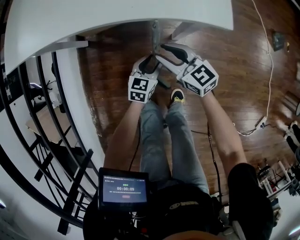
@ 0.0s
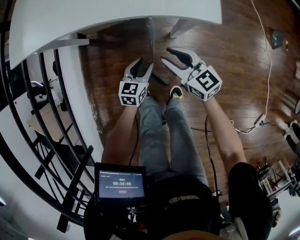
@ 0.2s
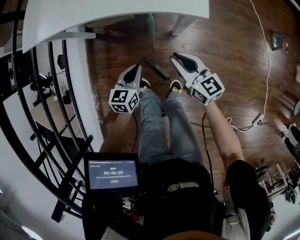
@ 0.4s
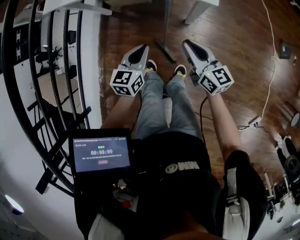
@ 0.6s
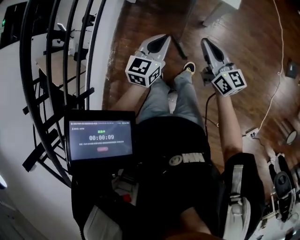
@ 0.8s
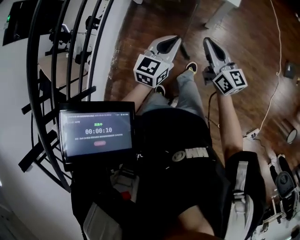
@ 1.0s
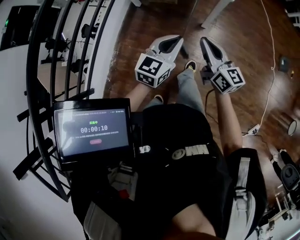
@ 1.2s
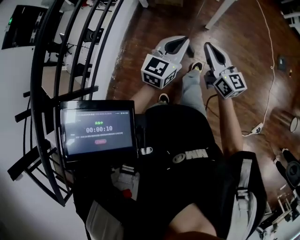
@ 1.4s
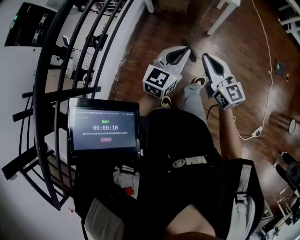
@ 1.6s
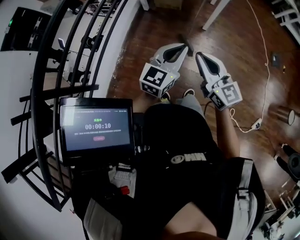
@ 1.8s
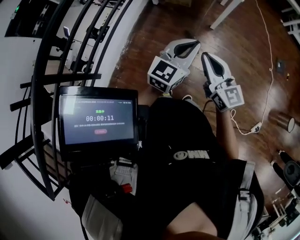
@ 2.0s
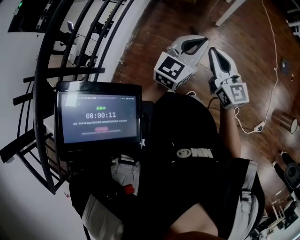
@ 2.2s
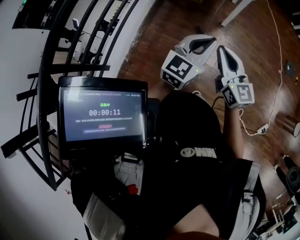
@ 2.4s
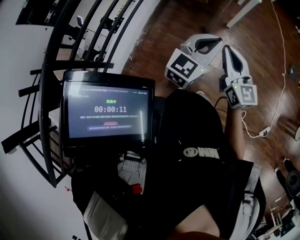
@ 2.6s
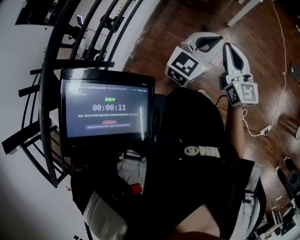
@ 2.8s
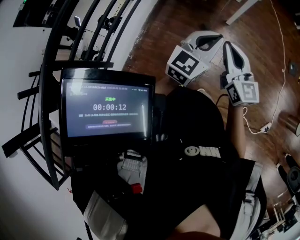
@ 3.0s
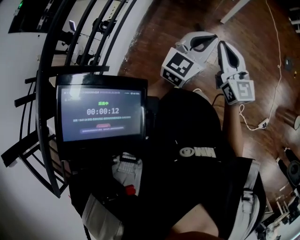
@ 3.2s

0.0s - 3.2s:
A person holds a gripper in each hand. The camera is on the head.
0.0s - 1.6s: The two grippers travel together, backward, approximately 50 cm. The two grippers go roughly 40 cm upward. The left gripper swivels some 30 degrees, and closes its fingers. Meanwhile the right gripper closes.
1.6s - 3.2s: The left gripper shifts by some 5 cm.

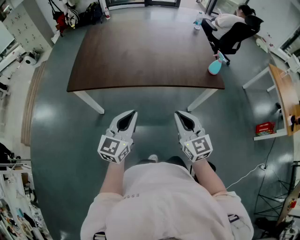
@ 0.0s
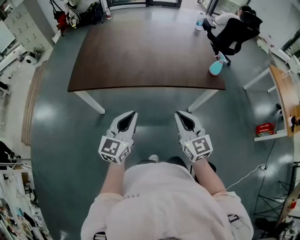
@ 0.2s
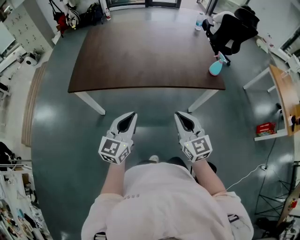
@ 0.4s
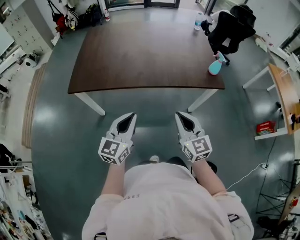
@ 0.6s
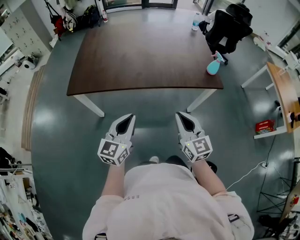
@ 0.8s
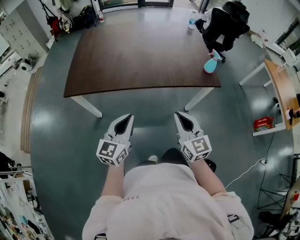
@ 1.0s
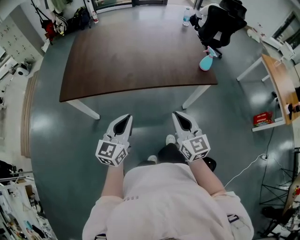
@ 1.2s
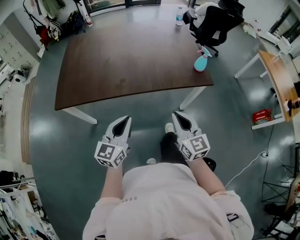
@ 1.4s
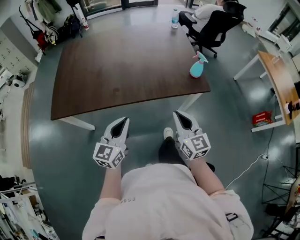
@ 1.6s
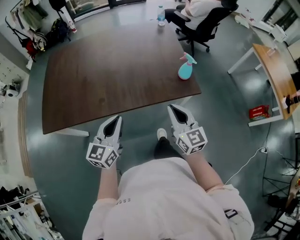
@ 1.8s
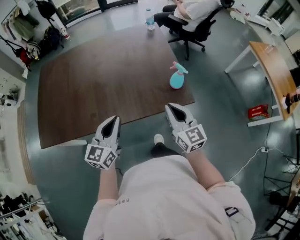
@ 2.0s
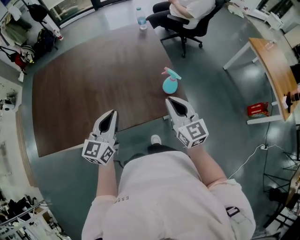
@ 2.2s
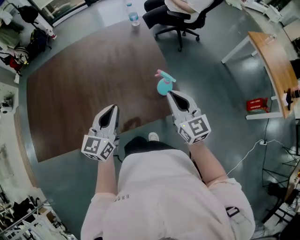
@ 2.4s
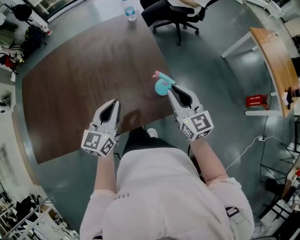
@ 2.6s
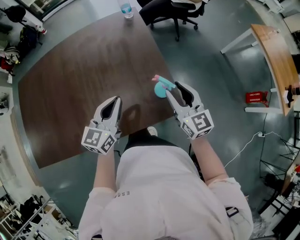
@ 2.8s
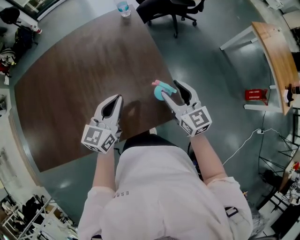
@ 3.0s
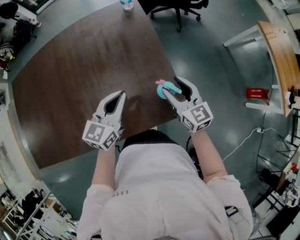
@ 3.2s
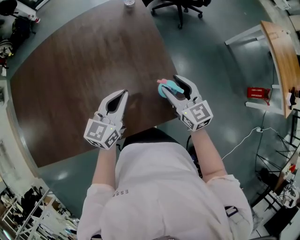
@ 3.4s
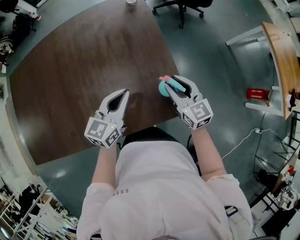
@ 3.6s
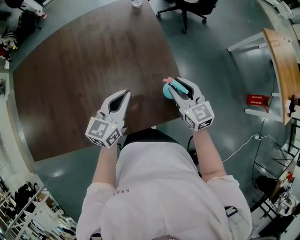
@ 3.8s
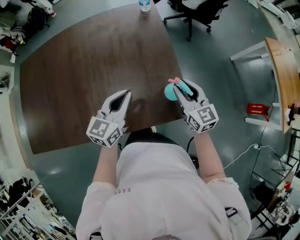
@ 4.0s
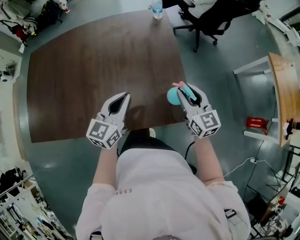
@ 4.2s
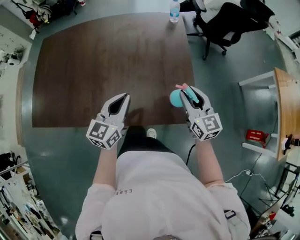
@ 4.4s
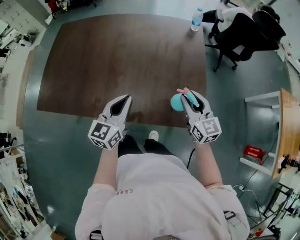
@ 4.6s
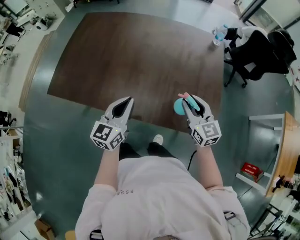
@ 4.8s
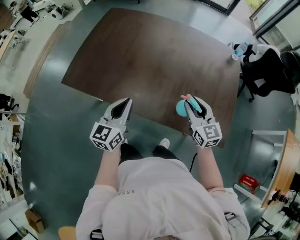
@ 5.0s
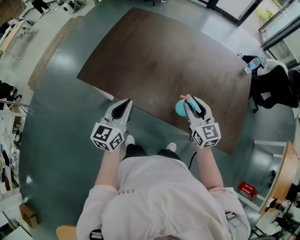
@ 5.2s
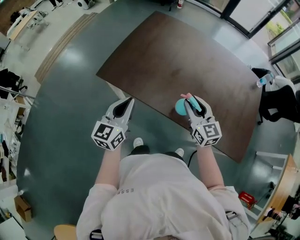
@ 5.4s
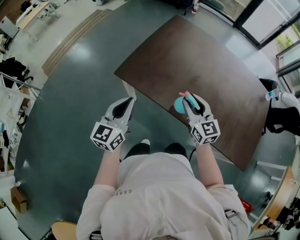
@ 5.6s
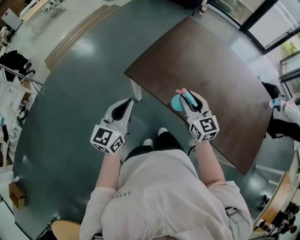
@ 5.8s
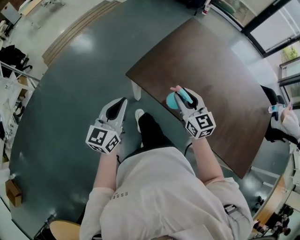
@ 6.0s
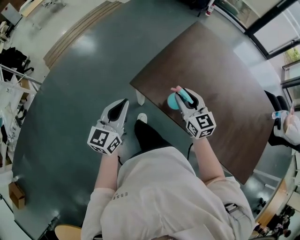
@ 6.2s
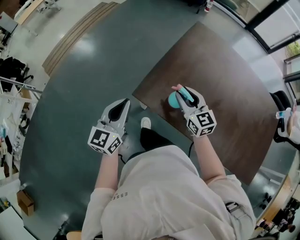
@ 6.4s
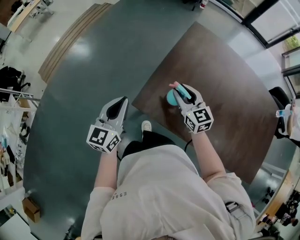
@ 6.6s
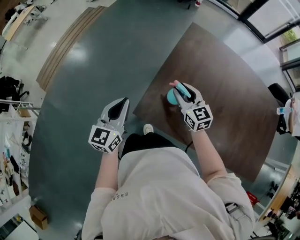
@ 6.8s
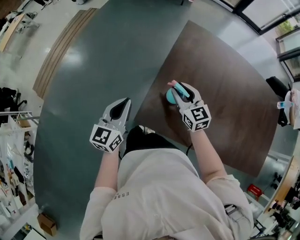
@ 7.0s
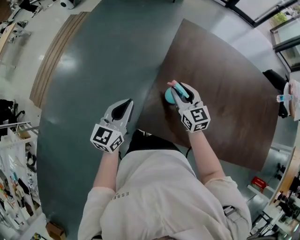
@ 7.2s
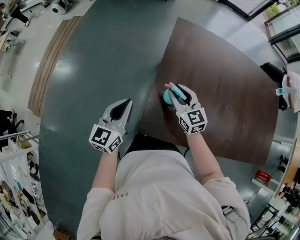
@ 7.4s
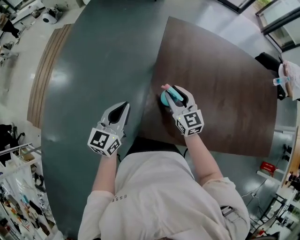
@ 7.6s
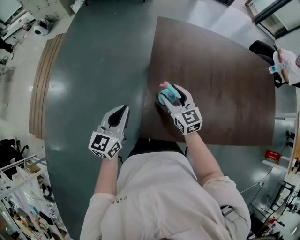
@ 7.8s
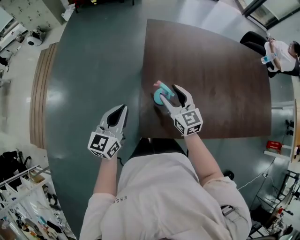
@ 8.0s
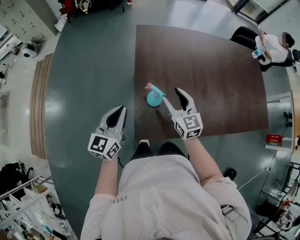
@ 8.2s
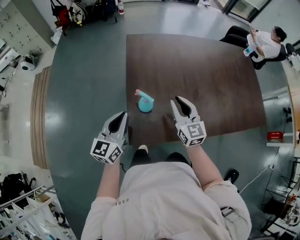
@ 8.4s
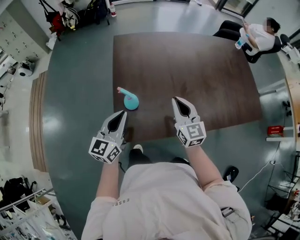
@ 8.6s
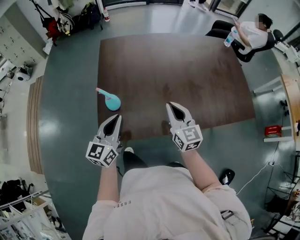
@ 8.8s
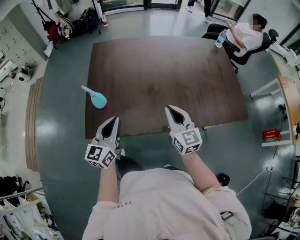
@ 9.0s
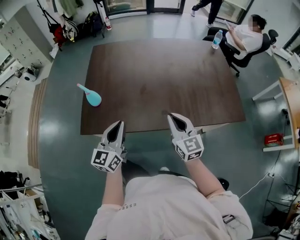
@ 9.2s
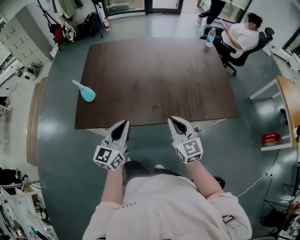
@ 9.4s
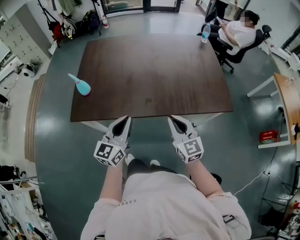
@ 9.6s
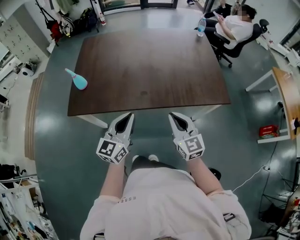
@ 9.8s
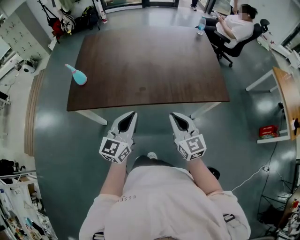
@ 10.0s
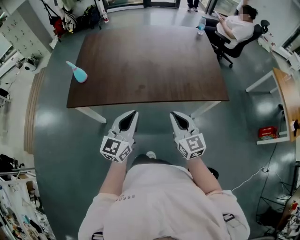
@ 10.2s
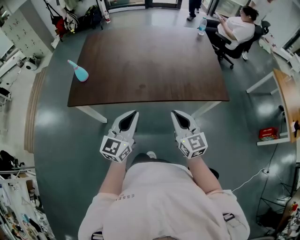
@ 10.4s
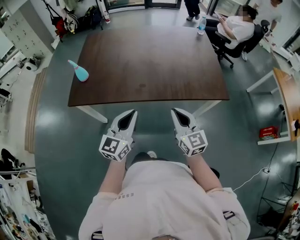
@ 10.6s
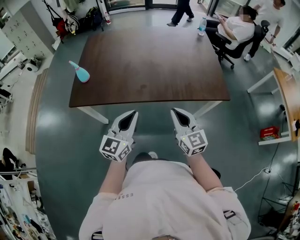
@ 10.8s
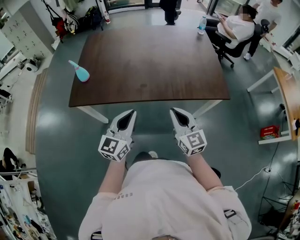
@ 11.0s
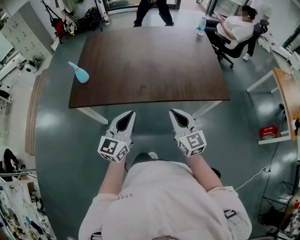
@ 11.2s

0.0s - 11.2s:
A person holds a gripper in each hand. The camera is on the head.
0.0s - 1.6s: The right gripper heads to the right and forward, covering about 15 cm. The left gripper moves forward and to the right, roughly 10 cm.
1.6s - 3.2s: The two grippers go some 40 cm forward and to the right. The right gripper opens.
3.2s - 4.8s: The right gripper changes place by some 20 cm, rotates approximately 30 degrees, and closes. Meanwhile the left gripper changes place by approximately 25 cm, and turns by some 40 degrees.
4.8s - 6.4s: Both grippers are carried roughly 60 cm. The left gripper turns by some 20 degrees. Meanwhile the right gripper swivels some 20 degrees.
6.4s - 8.0s: The right gripper shifts by about 10 cm, turns by some 30 degrees, and opens up. The left gripper shifts by some 20 cm, and changes its angle by about 30 degrees.
8.0s - 9.6s: The pair of grippers is taken to the right and backward, about 50 cm. The right gripper closes its fingers.
9.6s - 11.2s: Both grippers travel together backward, some 5 cm.

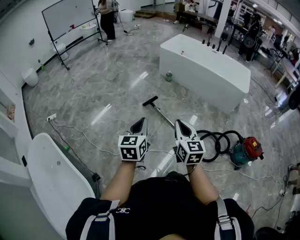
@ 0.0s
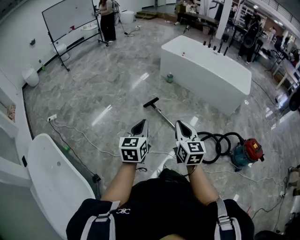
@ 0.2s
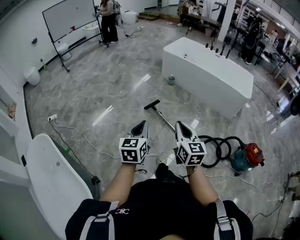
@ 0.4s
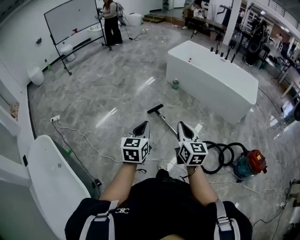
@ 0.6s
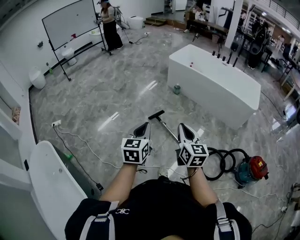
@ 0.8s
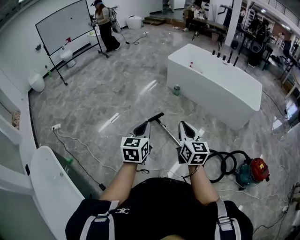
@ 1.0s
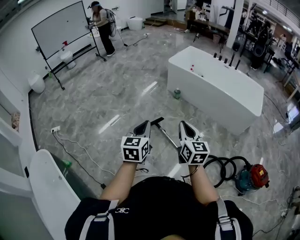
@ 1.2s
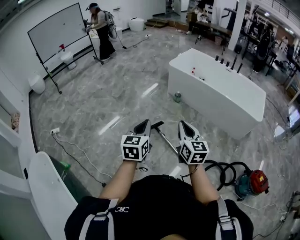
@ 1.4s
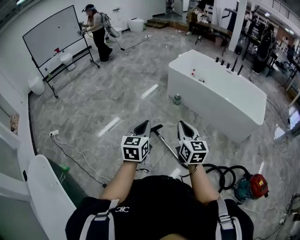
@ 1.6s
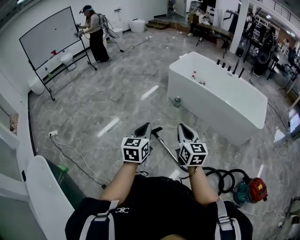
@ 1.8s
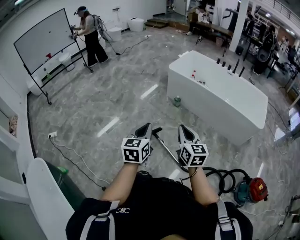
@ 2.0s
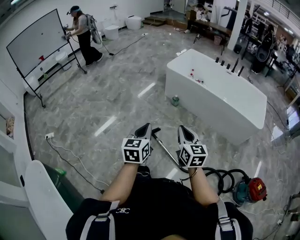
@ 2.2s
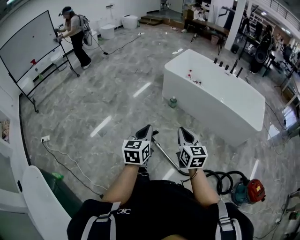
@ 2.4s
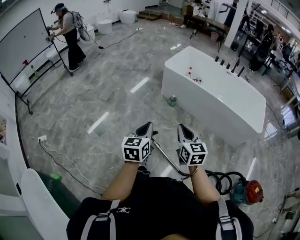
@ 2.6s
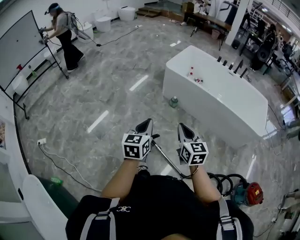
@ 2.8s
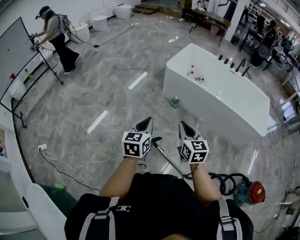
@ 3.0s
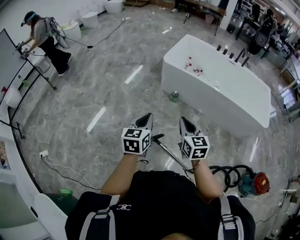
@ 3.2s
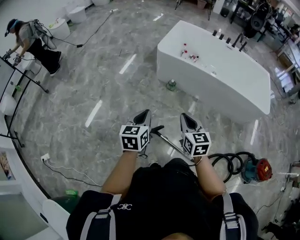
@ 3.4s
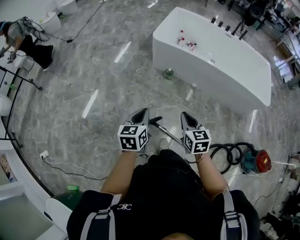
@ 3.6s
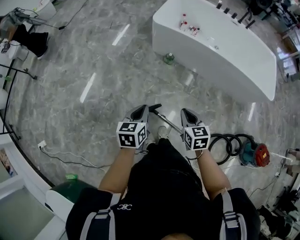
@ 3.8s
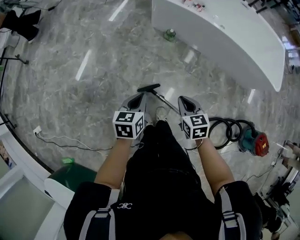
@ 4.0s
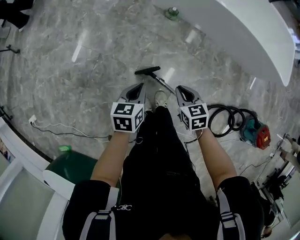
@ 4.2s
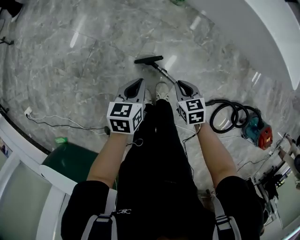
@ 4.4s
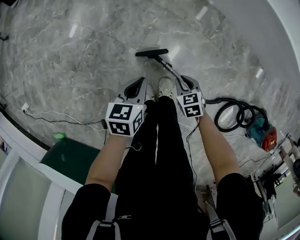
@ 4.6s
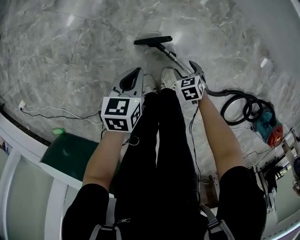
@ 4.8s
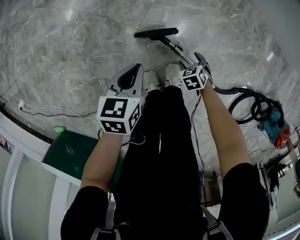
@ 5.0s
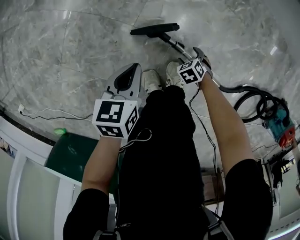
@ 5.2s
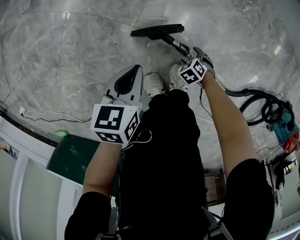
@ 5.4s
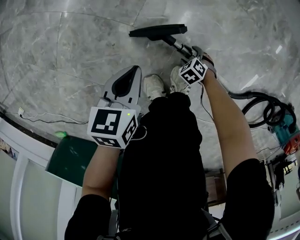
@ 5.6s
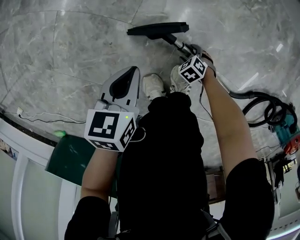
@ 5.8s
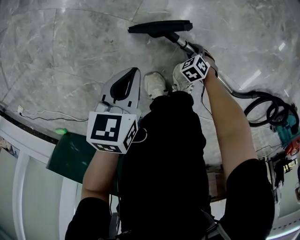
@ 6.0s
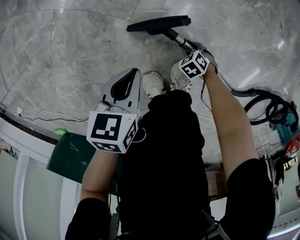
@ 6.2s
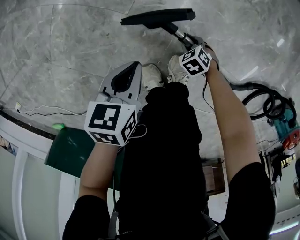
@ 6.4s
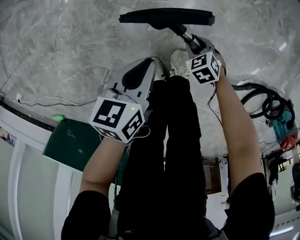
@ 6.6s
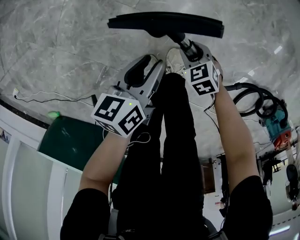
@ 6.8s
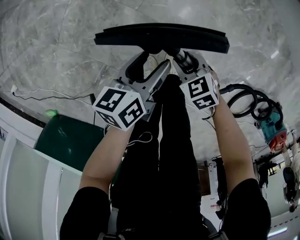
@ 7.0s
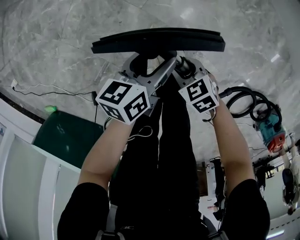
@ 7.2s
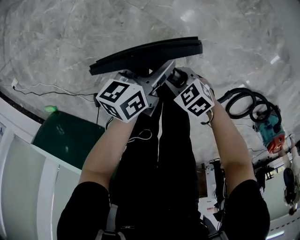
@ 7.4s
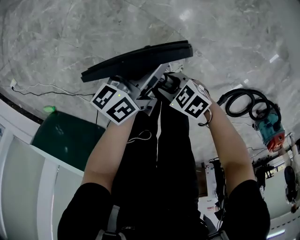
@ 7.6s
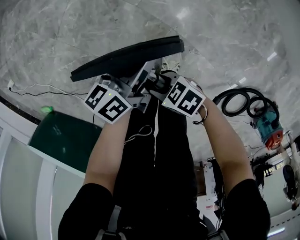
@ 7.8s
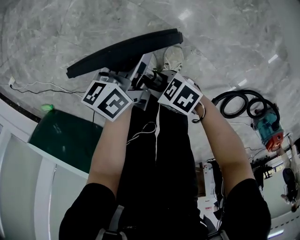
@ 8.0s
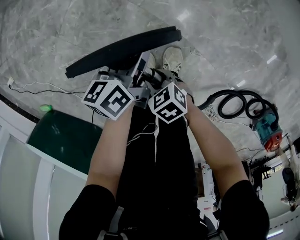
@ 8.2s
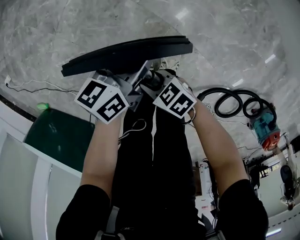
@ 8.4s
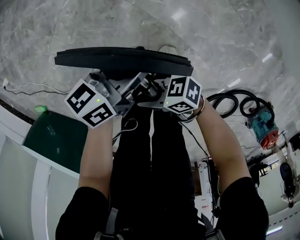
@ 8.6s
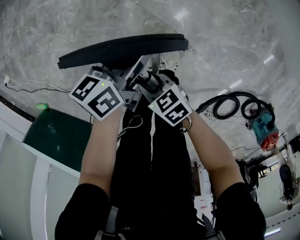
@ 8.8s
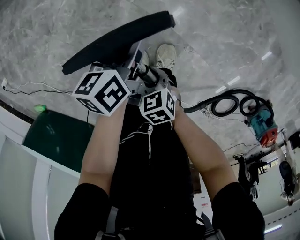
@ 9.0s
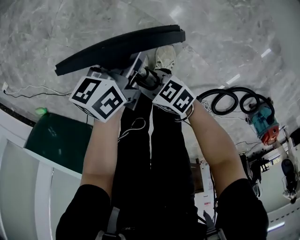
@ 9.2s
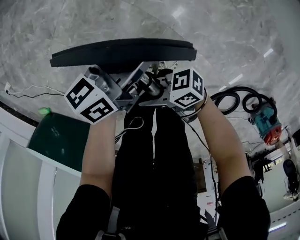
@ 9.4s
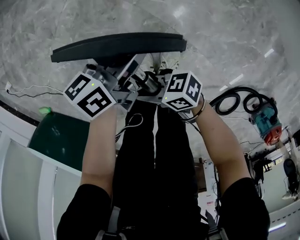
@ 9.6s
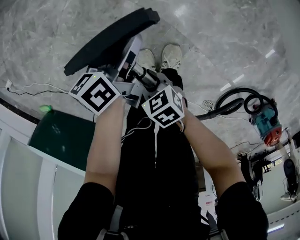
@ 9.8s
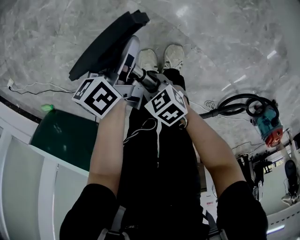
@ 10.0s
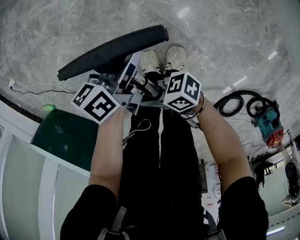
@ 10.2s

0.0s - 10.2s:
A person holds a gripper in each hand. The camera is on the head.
0.0s - 1.4s: Both grippers travel together forward, roughly 30 cm.
1.4s - 3.0s: Both grippers move forward, approximately 35 cm.
3.0s - 4.4s: Both grippers travel together downward, some 40 cm. The left gripper changes its angle by about 30 degrees. Meanwhile the right gripper tilts its fingers approximately 40 degrees downward.
4.4s - 5.8s: The right gripper travels downward by roughly 60 cm, turns by about 40 degrees, and opens. The left gripper is displaced downward by some 35 cm.
5.8s - 7.2s: The right gripper goes about 30 cm upward, turns by about 30 degrees, and closes. The left gripper goes approximately 10 cm upward, turns by roughly 30 degrees, and opens.
7.2s - 8.8s: The left gripper ends up about 5 cm from where it was, and closes; the right gripper shifts by some 15 cm.
8.8s - 10.2s: The right gripper swings up and down, some 10 cm each way, with 2 reversals, and points its fingers roughly 40 degrees further upward.
